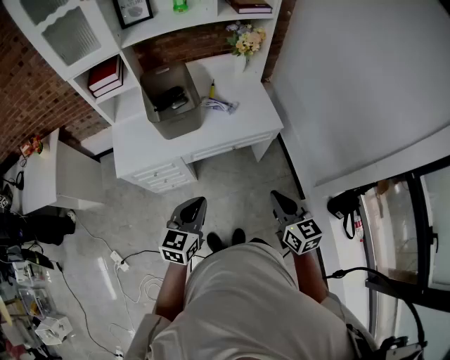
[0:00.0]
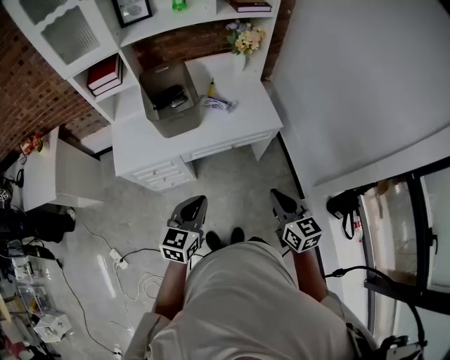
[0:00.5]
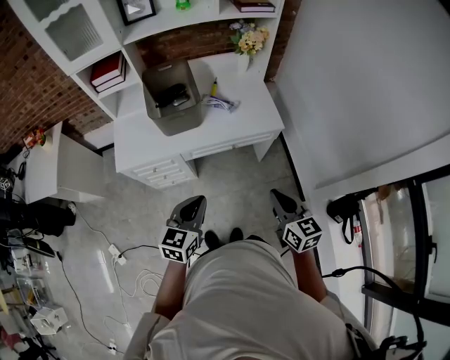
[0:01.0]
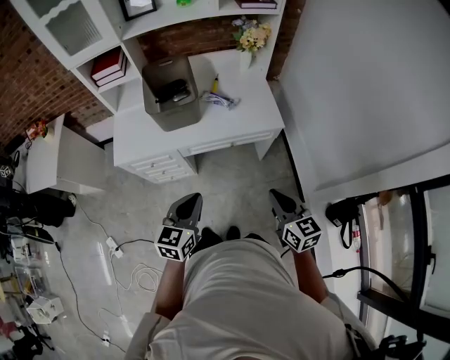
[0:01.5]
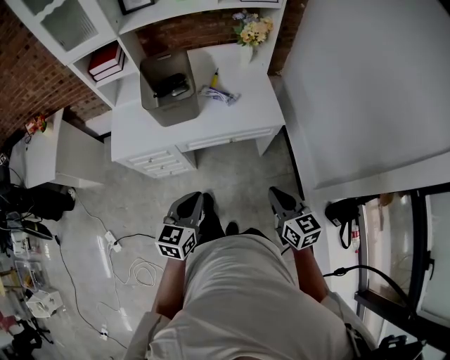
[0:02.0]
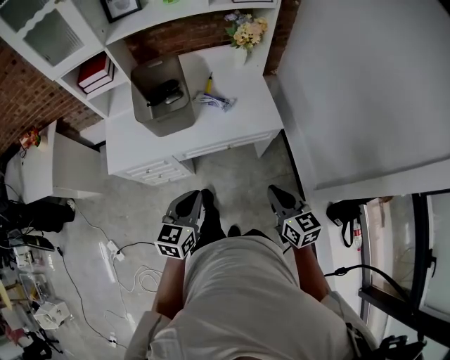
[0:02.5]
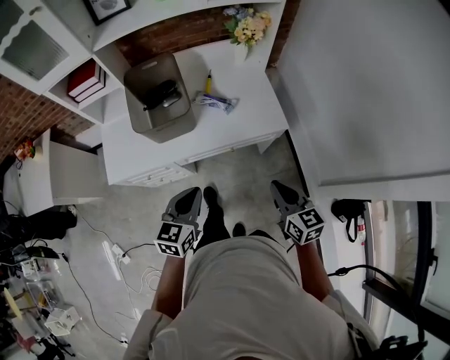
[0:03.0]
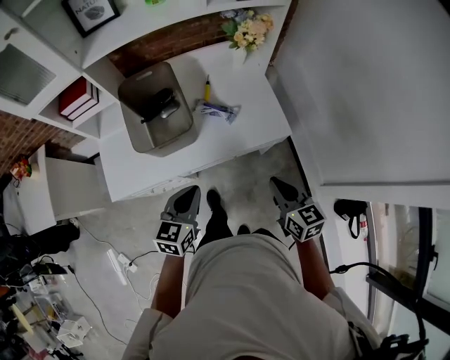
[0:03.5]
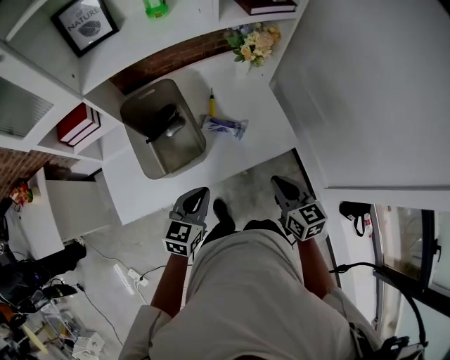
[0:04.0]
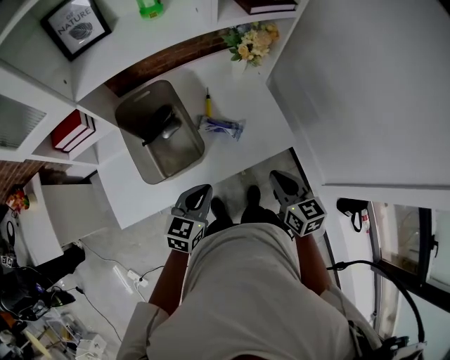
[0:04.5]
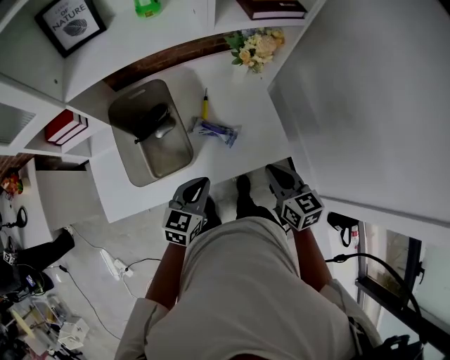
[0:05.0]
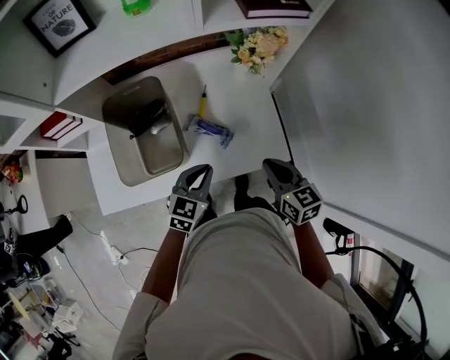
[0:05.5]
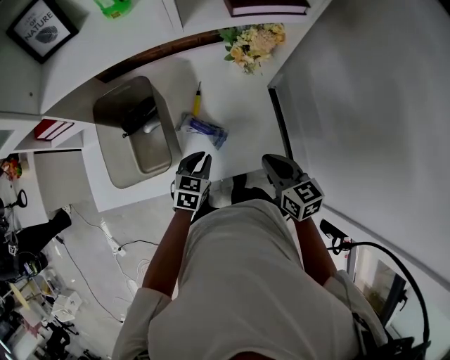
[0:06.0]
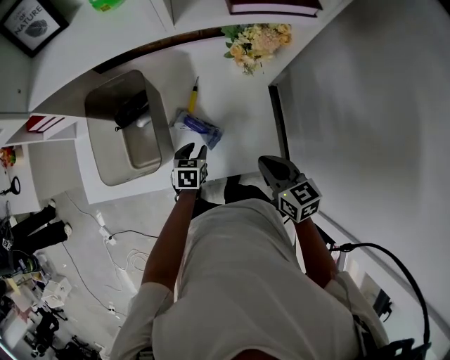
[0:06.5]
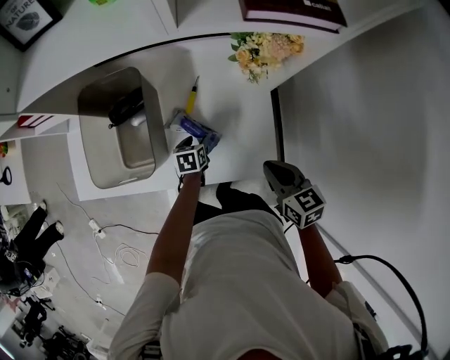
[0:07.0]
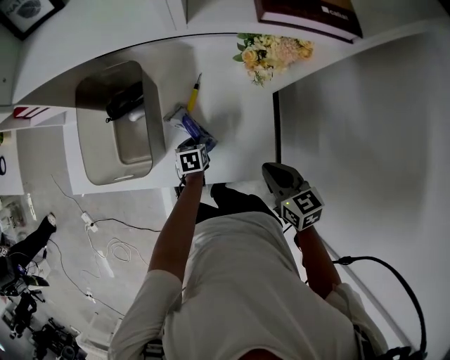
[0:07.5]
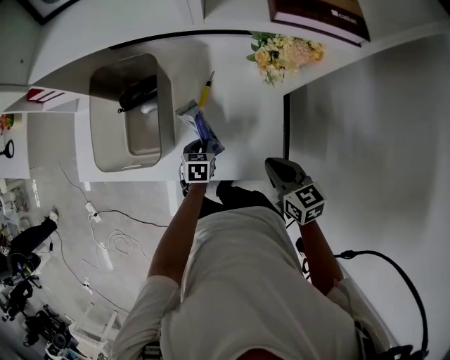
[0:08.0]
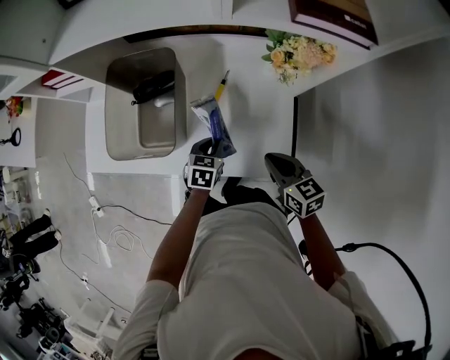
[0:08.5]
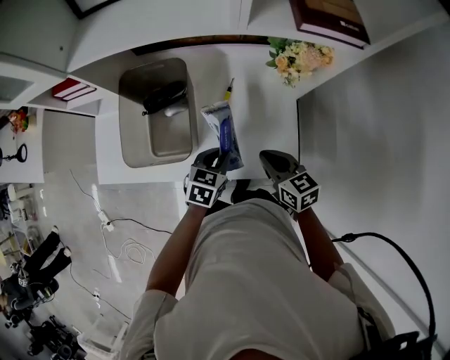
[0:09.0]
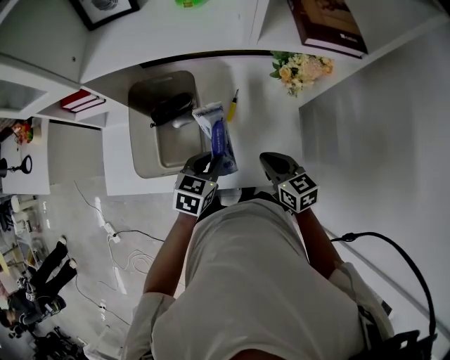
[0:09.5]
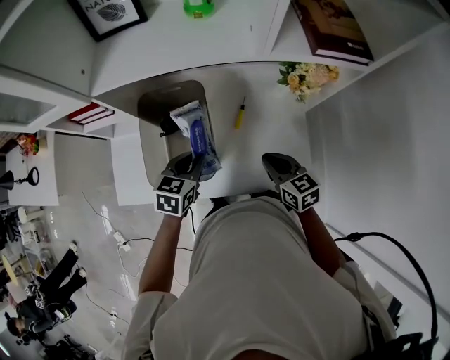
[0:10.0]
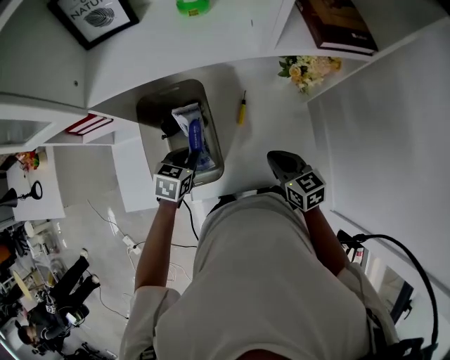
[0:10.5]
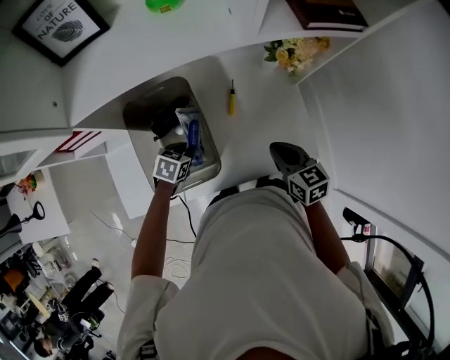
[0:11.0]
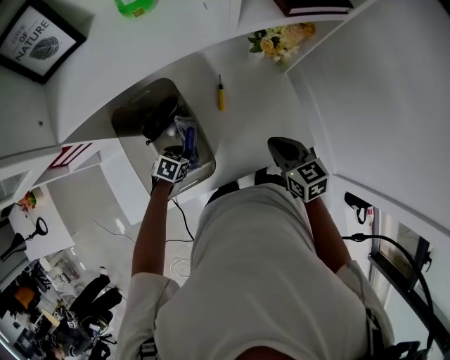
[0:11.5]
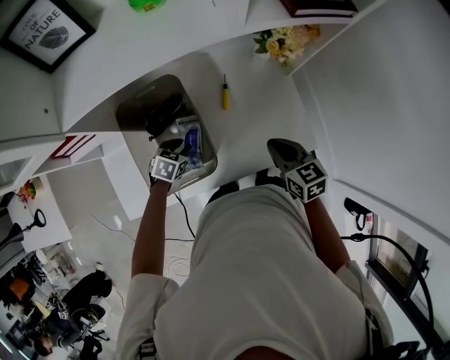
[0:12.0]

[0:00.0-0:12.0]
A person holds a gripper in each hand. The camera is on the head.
0.0 to 2.0 s: The grippers both shift to the right by approximately 5 cm.
2.0 to 4.0 s: Both grippers move forward, approximately 25 cm.
4.0 to 6.0 s: The left gripper goes about 25 cm forward, to the right and downward; the right gripper travels forward and to the right by approximately 20 cm.
6.0 to 8.0 s: The right gripper shifts approximately 5 cm downward. The left gripper moves downward and forward, roughly 15 cm, turns by roughly 30 degrees, and opens, then closes once more.
8.0 to 10.0 s: The left gripper heads upward and to the left, covering roughly 25 cm, and rotates about 20 degrees; the right gripper moves to the left, some 15 cm.
10.0 to 12.0 s: The left gripper shifts roughly 15 cm downward, and rotates roughly 30 degrees.

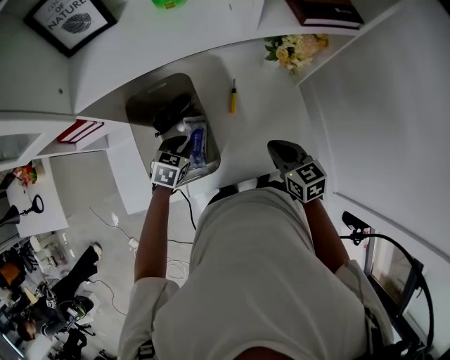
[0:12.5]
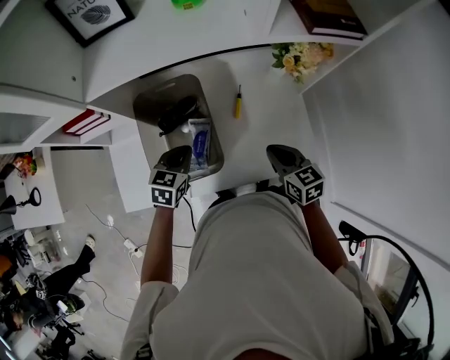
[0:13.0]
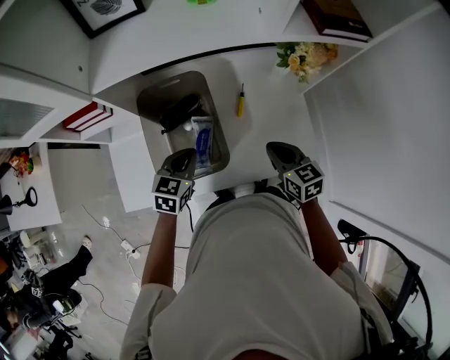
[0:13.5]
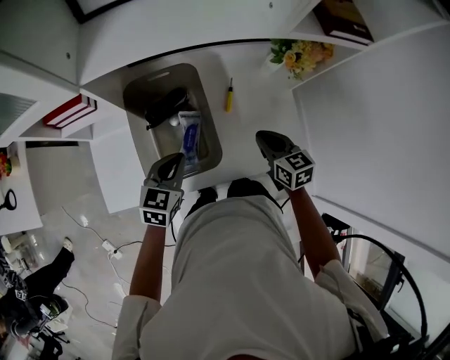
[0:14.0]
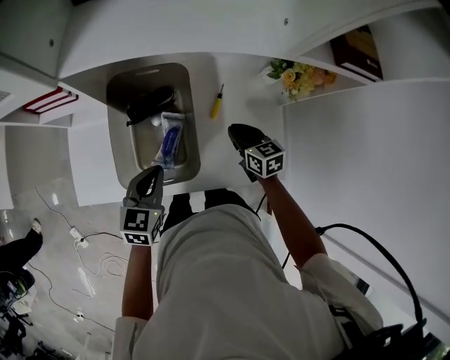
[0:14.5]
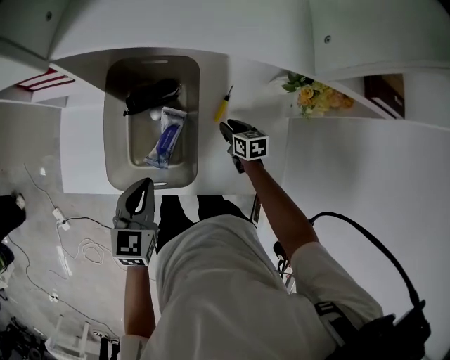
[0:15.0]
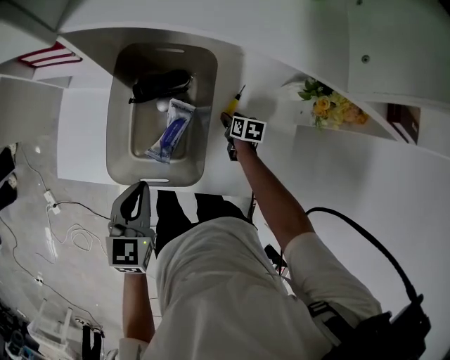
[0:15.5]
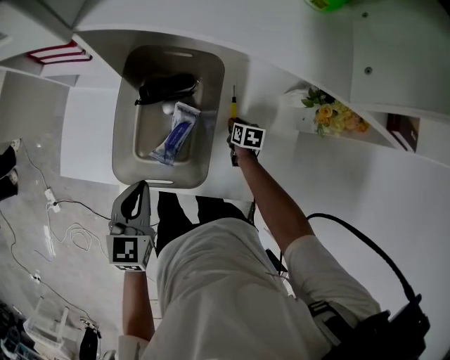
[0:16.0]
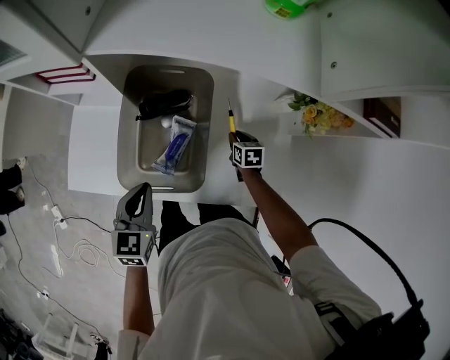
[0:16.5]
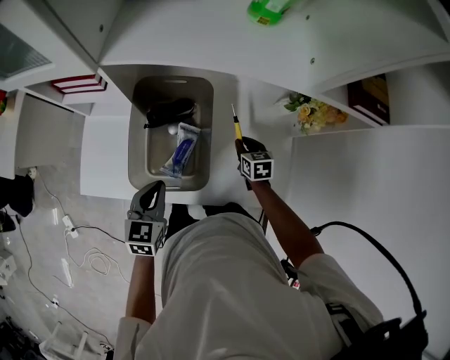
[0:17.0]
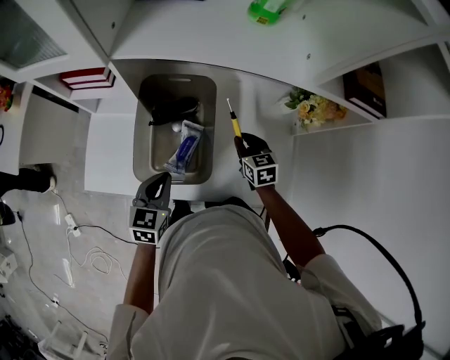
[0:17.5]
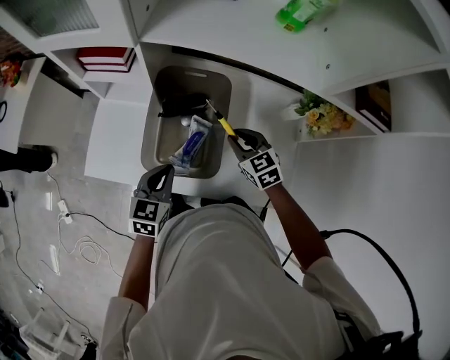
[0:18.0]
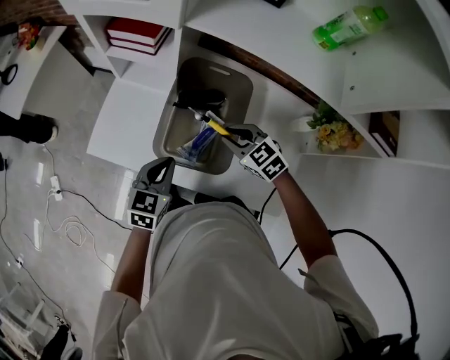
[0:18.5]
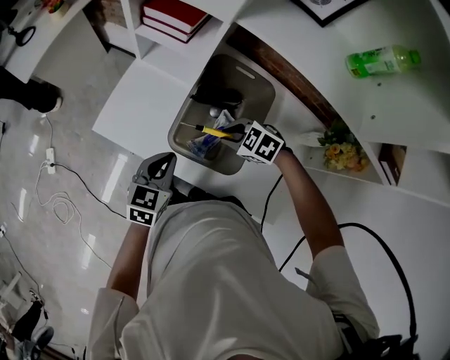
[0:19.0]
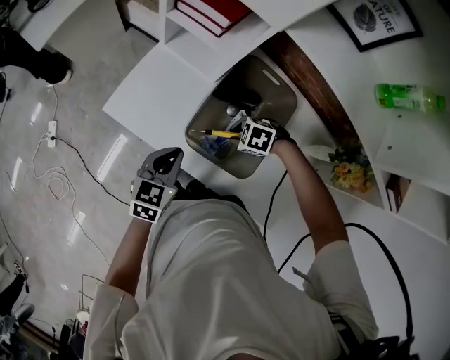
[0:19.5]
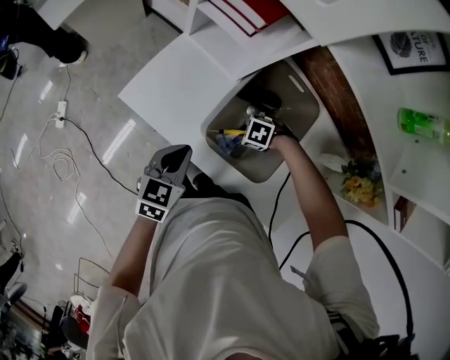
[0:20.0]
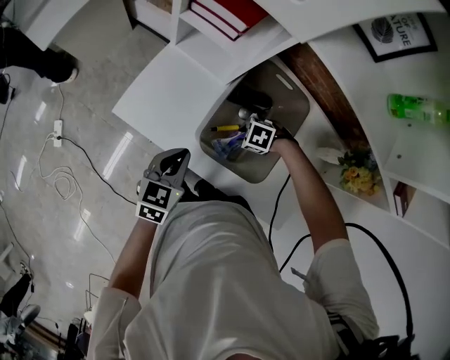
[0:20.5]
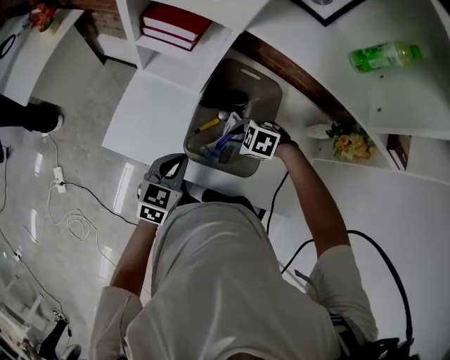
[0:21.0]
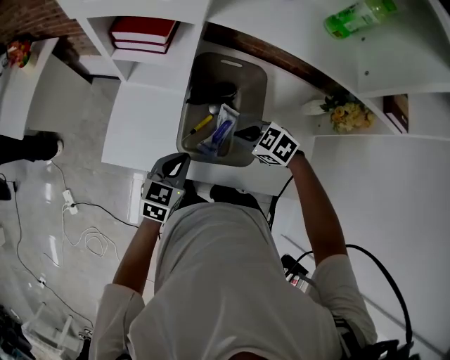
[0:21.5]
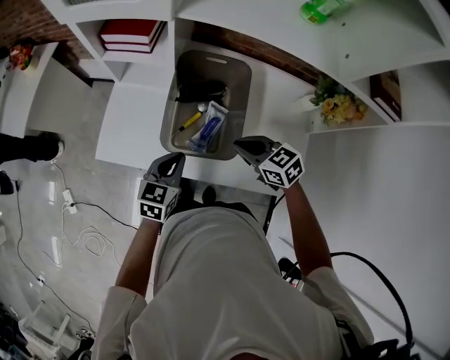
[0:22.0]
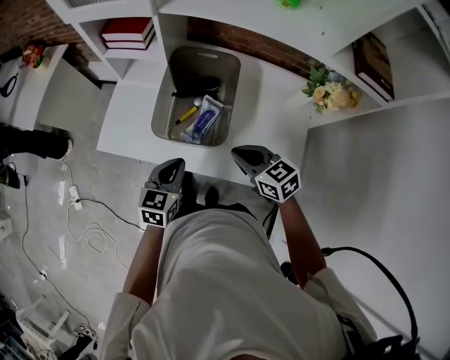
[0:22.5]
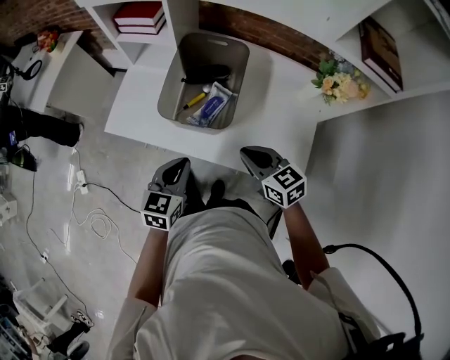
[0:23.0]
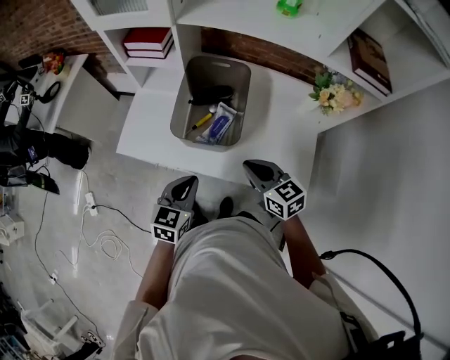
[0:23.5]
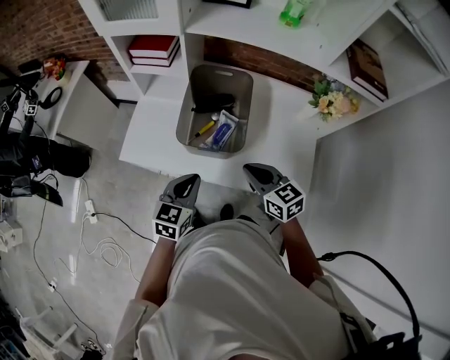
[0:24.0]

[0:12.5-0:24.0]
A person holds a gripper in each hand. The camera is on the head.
12.5 to 14.5 s: The right gripper is displaced forward, downward and to the left by approximately 15 cm. The left gripper heads backward and upward, covering about 10 cm, and changes its angle by approximately 30 degrees.
14.5 to 16.5 s: The left gripper shifts by approximately 5 cm, while the right gripper heads downward and forward, covering roughly 15 cm, turns by some 20 degrees, and opens and closes again.
16.5 to 18.5 s: The right gripper is displaced upward by roughly 20 cm, and rotates around the line of its fingers by approximately 50 degrees, counterclockwise from behind.
18.5 to 20.0 s: The left gripper ends up some 10 cm from where it was, while the right gripper is displaced downward by approximately 20 cm, and rotates approximately 60 degrees.
20.0 to 22.0 s: The left gripper shifts by approximately 10 cm, and rotates approximately 20 degrees. The right gripper goes about 20 cm upward, and tips its fingers upward by about 30 degrees.
22.0 to 24.0 s: The two grippers go roughly 15 cm backward and upward.

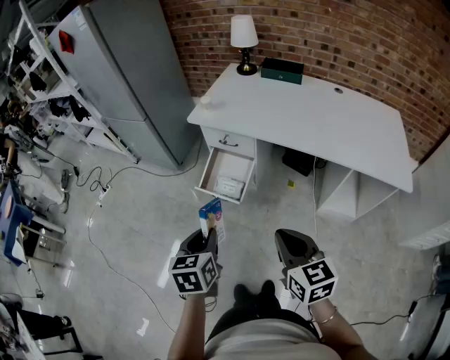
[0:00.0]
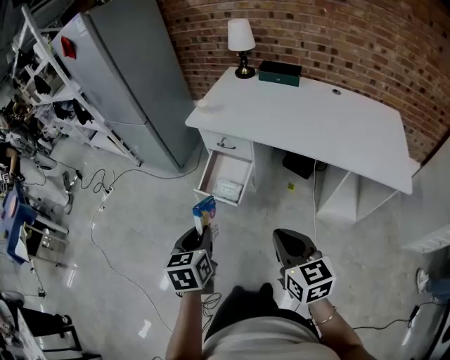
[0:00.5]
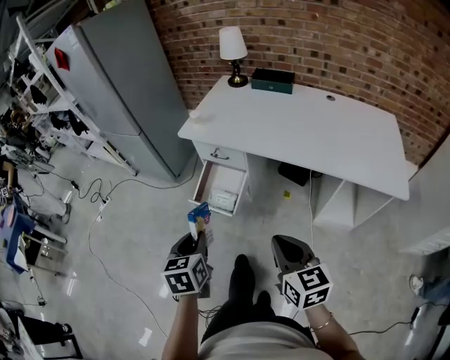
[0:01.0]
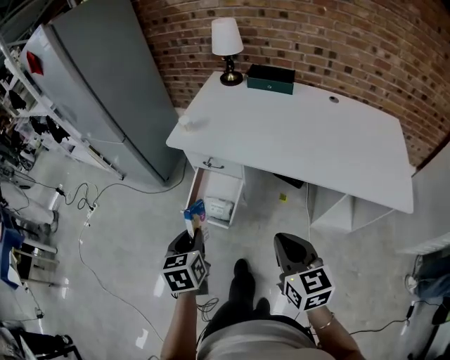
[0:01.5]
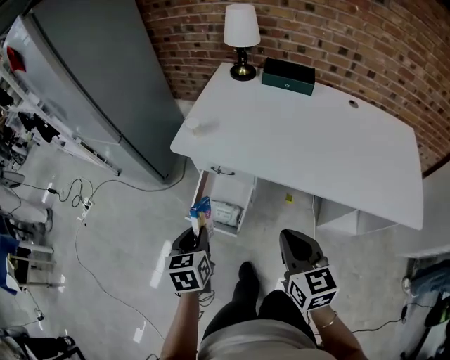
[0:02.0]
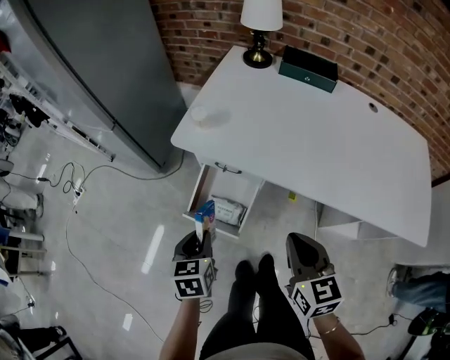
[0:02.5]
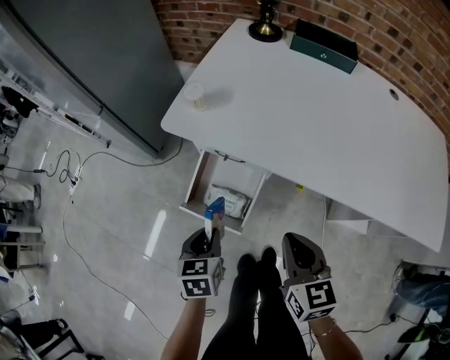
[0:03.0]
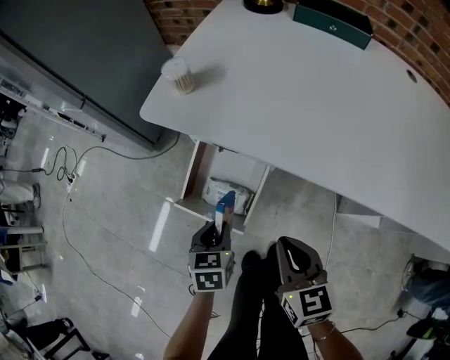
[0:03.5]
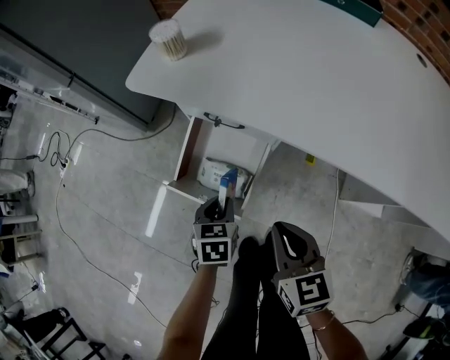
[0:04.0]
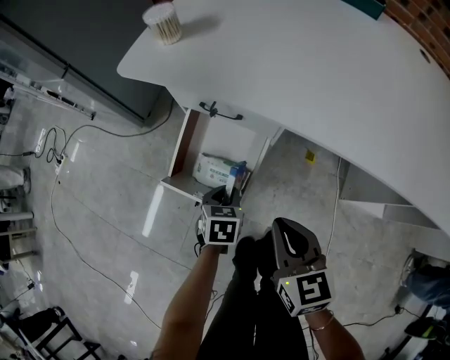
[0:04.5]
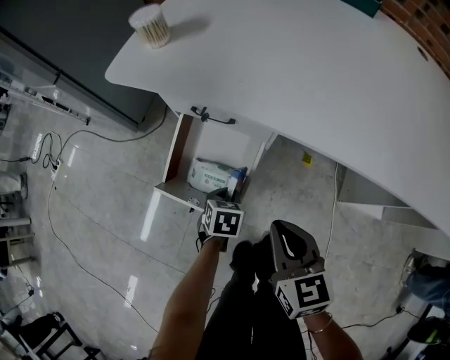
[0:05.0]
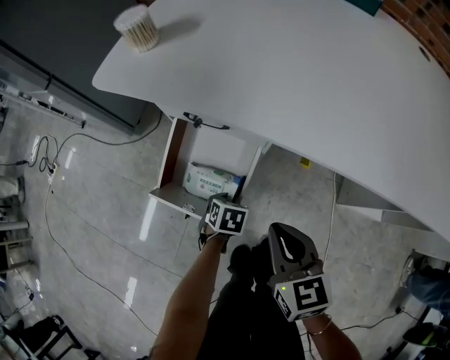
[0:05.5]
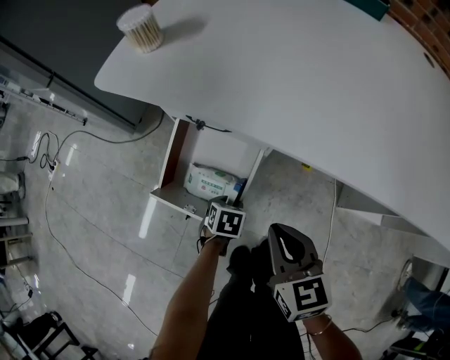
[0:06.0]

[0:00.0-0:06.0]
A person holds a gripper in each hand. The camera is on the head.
0.0 to 2.0 s: The grippers both shift forward by roughly 30 cm.
2.0 to 4.0 s: Both grippers move downward, about 35 cm.
4.0 to 6.0 s: The right gripper moves downward, about 5 cm. The left gripper travels downward by roughly 15 cm, turns by approximately 20 degrees, and opens its fingers.
